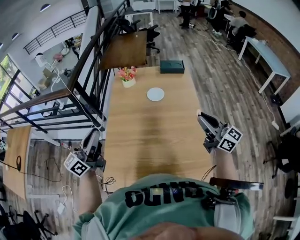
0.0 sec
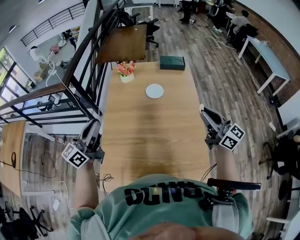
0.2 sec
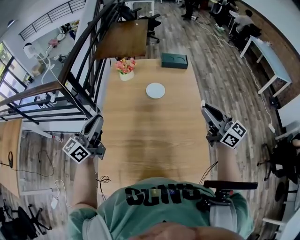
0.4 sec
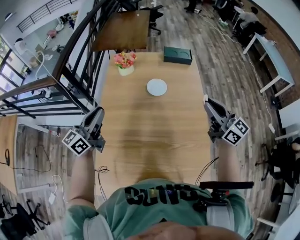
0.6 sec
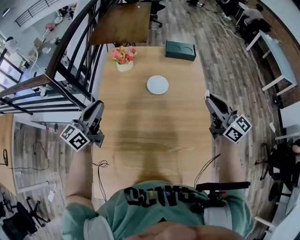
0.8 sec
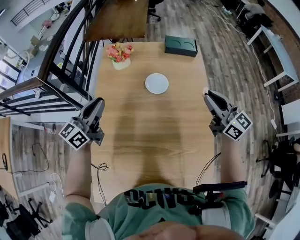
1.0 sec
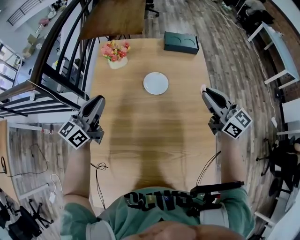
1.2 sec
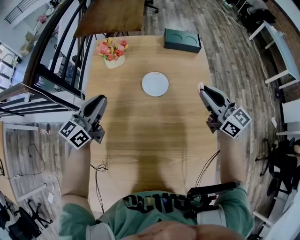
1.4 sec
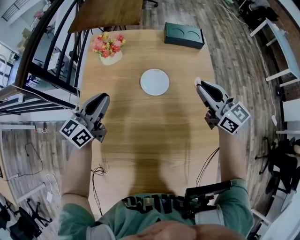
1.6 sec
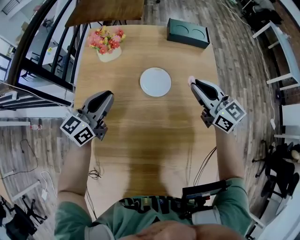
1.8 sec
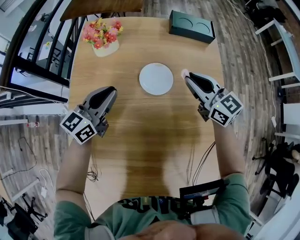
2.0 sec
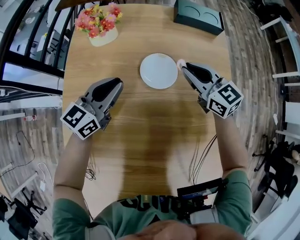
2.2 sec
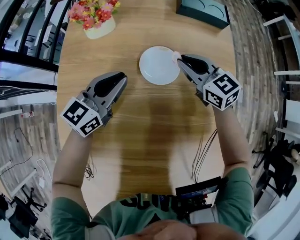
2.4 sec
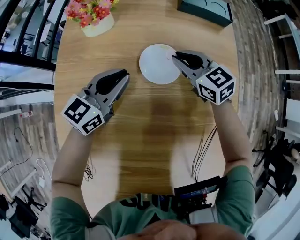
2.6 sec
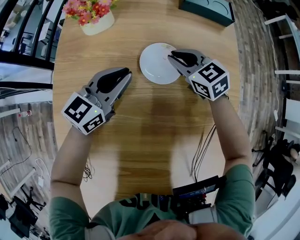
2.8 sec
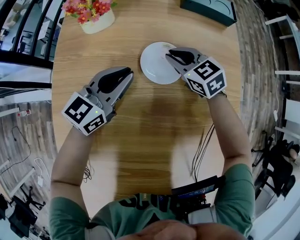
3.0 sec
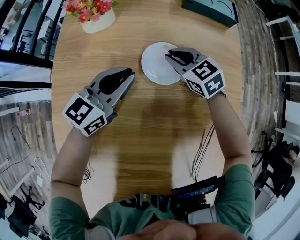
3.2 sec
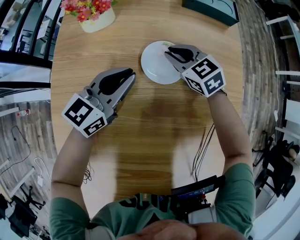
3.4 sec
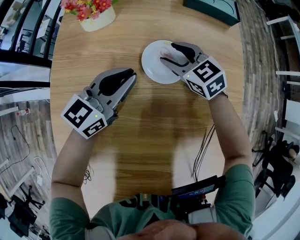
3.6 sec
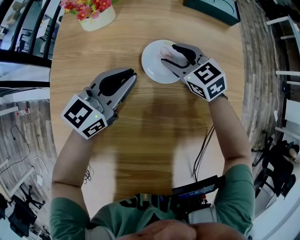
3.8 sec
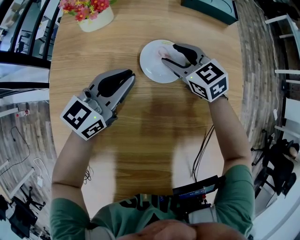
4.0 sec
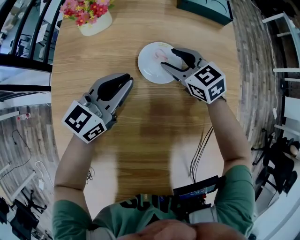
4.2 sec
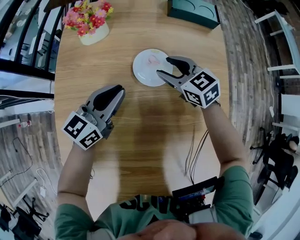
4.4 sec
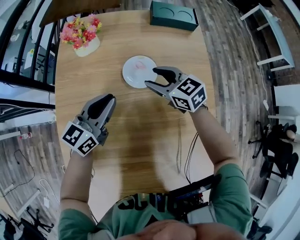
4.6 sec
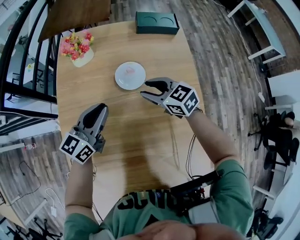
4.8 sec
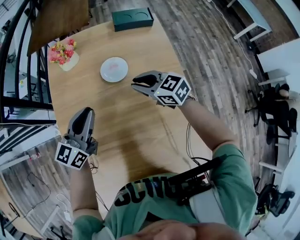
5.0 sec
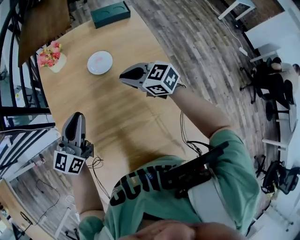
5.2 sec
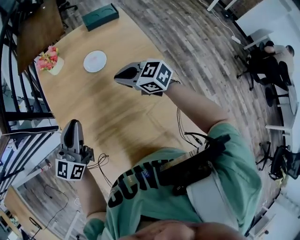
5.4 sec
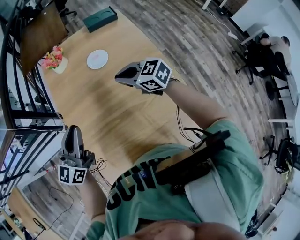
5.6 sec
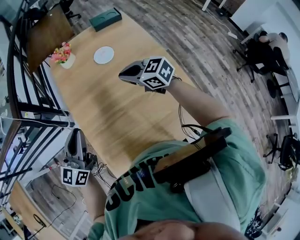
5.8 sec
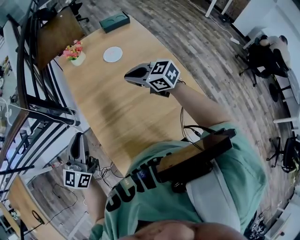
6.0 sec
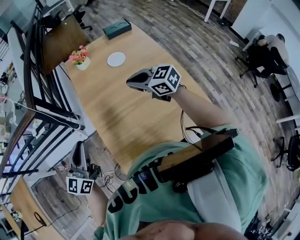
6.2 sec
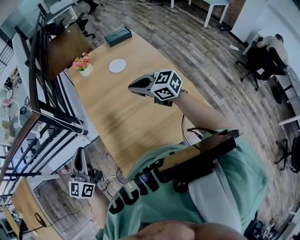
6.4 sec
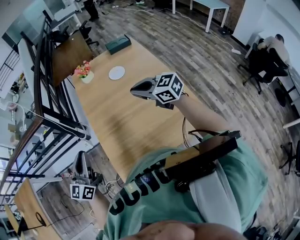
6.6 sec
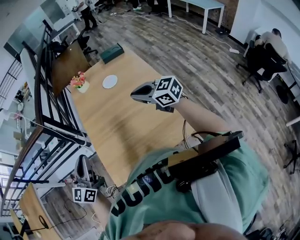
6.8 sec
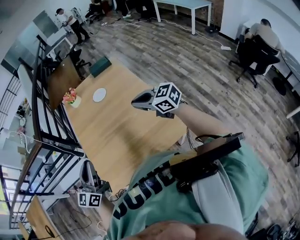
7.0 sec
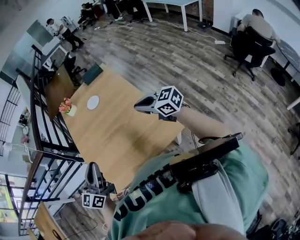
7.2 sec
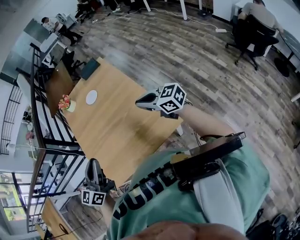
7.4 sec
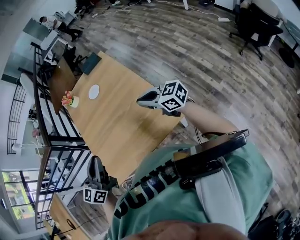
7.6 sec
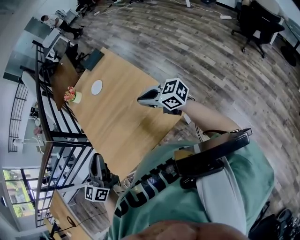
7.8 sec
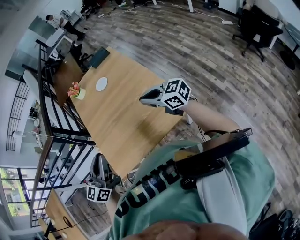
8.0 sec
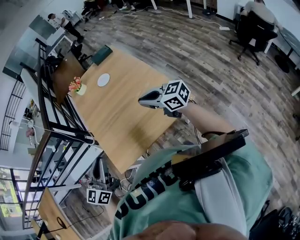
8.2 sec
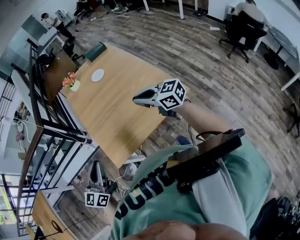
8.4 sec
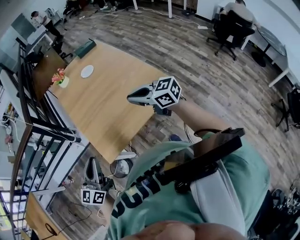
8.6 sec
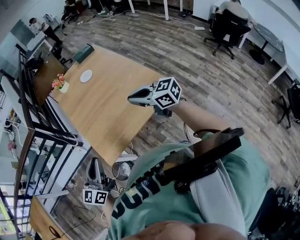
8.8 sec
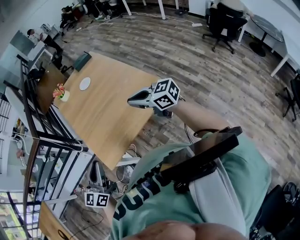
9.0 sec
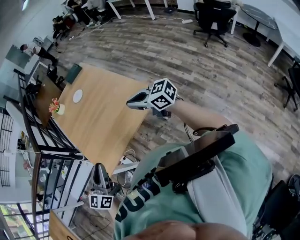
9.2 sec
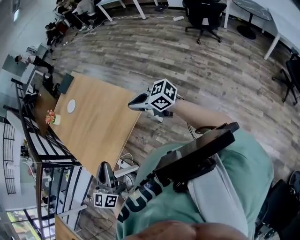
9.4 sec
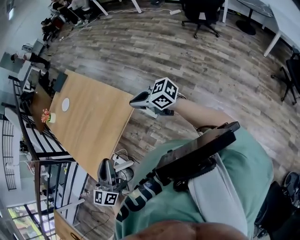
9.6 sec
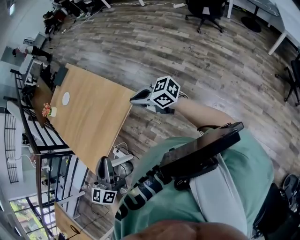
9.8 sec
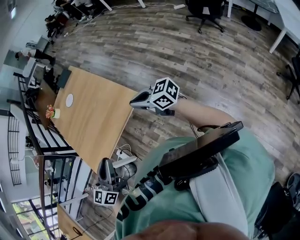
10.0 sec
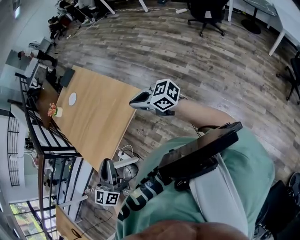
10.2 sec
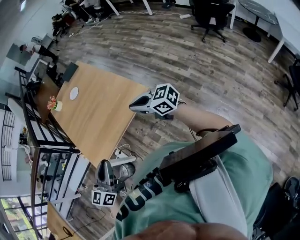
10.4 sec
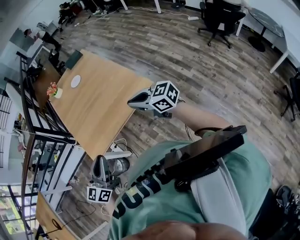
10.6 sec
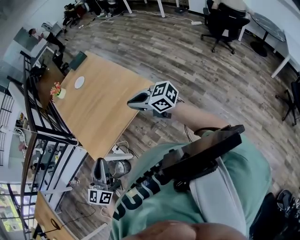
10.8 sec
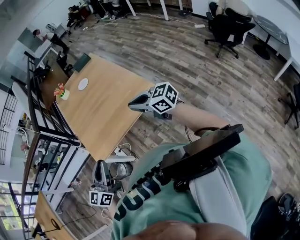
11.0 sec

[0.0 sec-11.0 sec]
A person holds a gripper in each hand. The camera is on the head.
0.0 sec to 1.6 sec: The grippers both shift forward and downward by some 40 cm.
1.6 sec to 3.2 sec: The right gripper shifts about 30 cm downward, forward and to the left, and tips its fingers downward by some 30 degrees. The left gripper heads downward, to the right and forward, covering about 20 cm.
3.2 sec to 4.8 sec: The left gripper is displaced upward and backward by some 15 cm. Meanwhile the right gripper moves backward and upward, some 20 cm, and opens its fingers.
4.8 sec to 6.2 sec: The right gripper shifts roughly 40 cm backward, upward and to the left, and closes its fingers, while the left gripper moves backward, to the left and upward, approximately 50 cm.
6.2 sec to 7.8 sec: Both grippers move to the right and backward, roughly 40 cm.
7.8 sec to 9.4 sec: Both grippers move backward, roughly 25 cm. The right gripper moves some 25 cm to the left and comes back, while the left gripper moves approximately 25 cm to the left and comes back.
9.4 sec to 11.0 sec: The left gripper is displaced to the left and backward by approximately 15 cm; the right gripper shifts roughly 15 cm to the left.

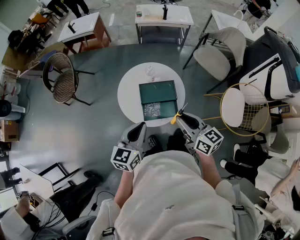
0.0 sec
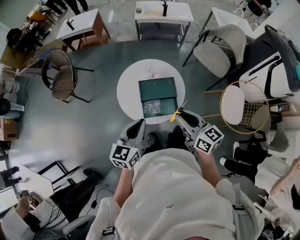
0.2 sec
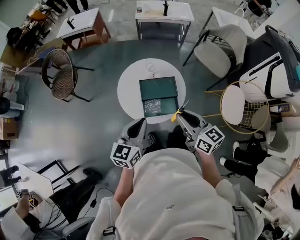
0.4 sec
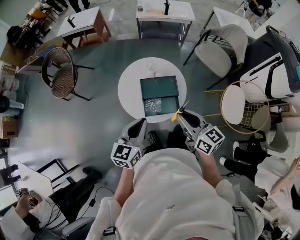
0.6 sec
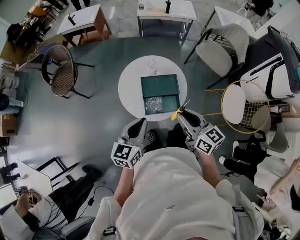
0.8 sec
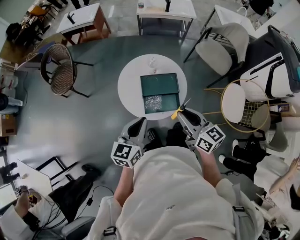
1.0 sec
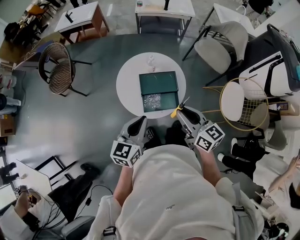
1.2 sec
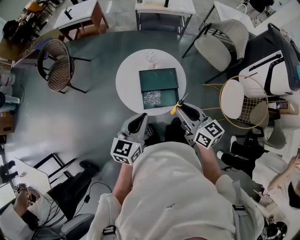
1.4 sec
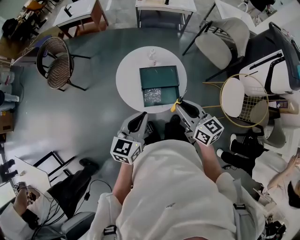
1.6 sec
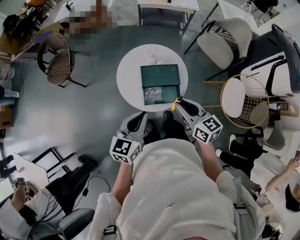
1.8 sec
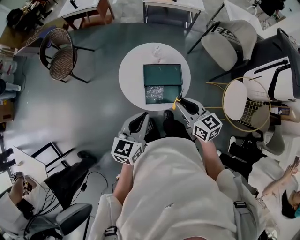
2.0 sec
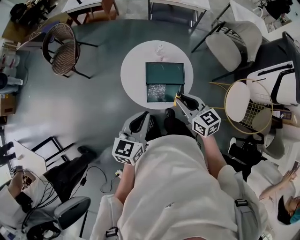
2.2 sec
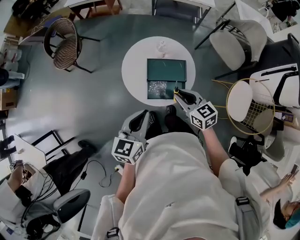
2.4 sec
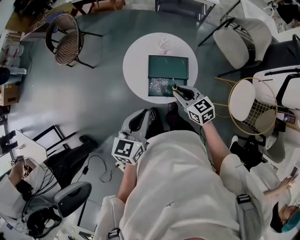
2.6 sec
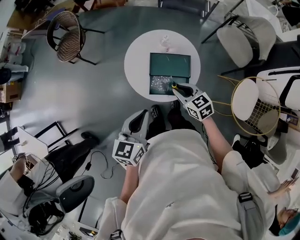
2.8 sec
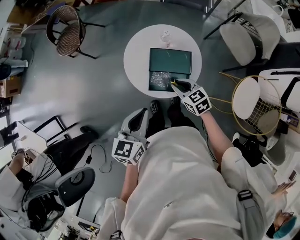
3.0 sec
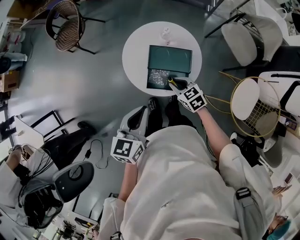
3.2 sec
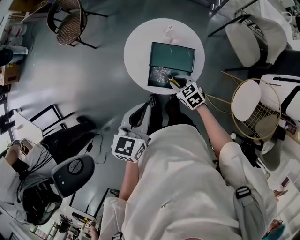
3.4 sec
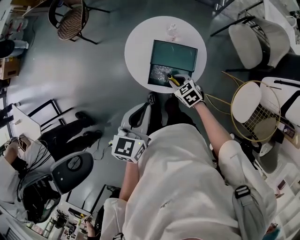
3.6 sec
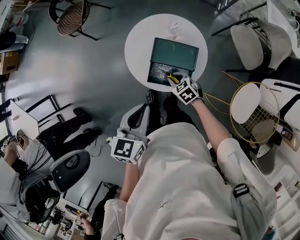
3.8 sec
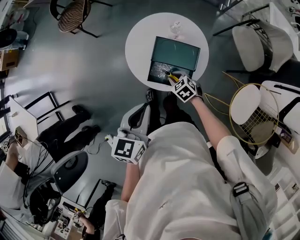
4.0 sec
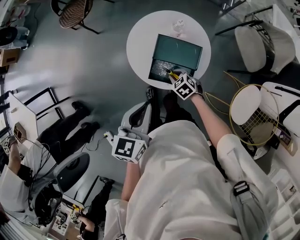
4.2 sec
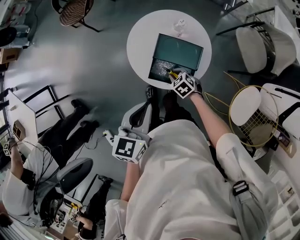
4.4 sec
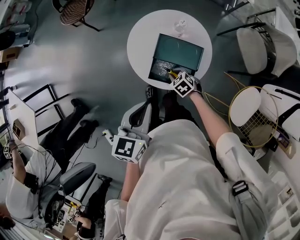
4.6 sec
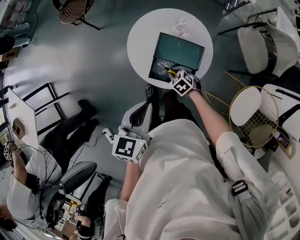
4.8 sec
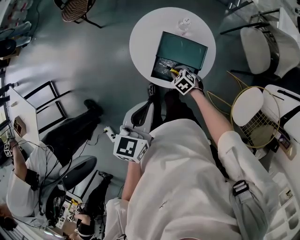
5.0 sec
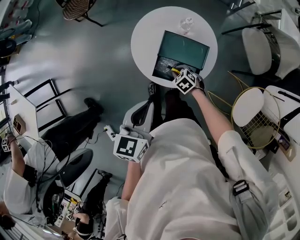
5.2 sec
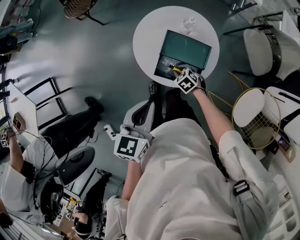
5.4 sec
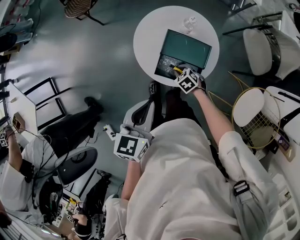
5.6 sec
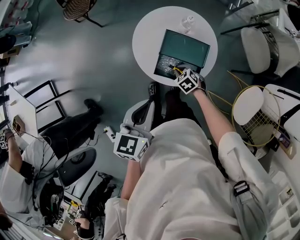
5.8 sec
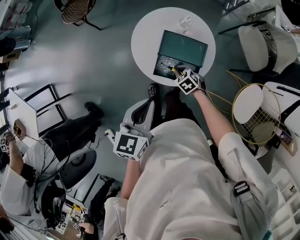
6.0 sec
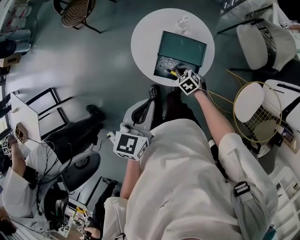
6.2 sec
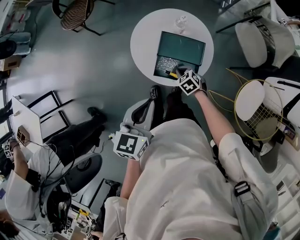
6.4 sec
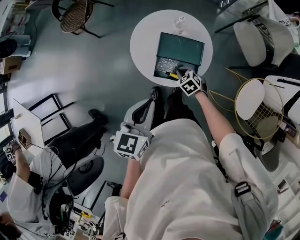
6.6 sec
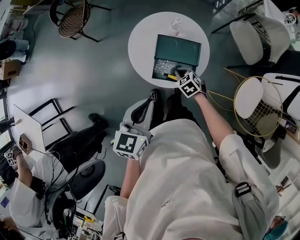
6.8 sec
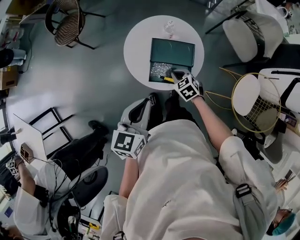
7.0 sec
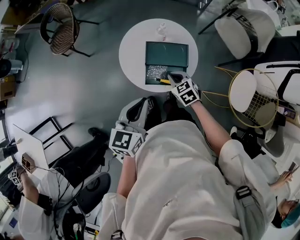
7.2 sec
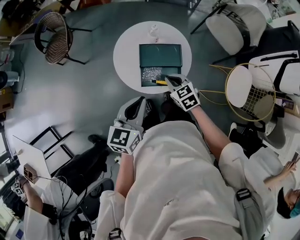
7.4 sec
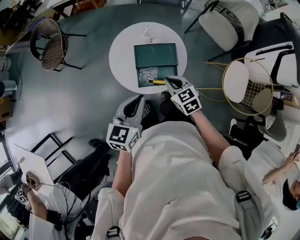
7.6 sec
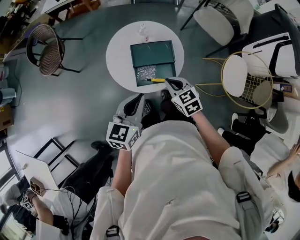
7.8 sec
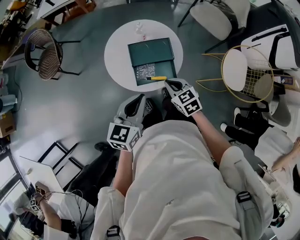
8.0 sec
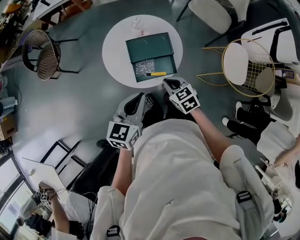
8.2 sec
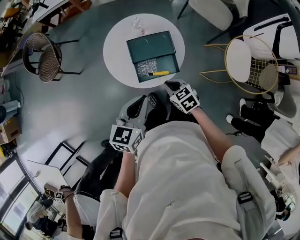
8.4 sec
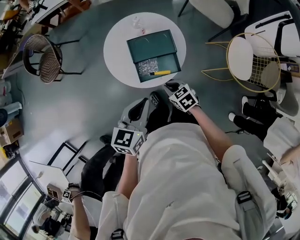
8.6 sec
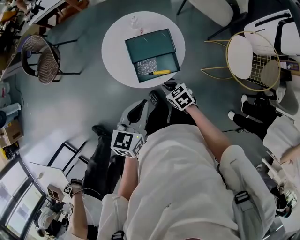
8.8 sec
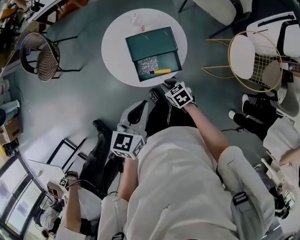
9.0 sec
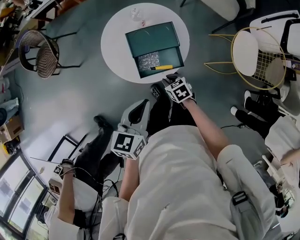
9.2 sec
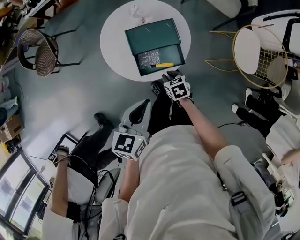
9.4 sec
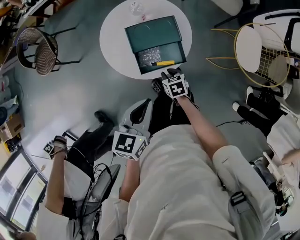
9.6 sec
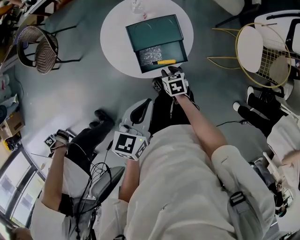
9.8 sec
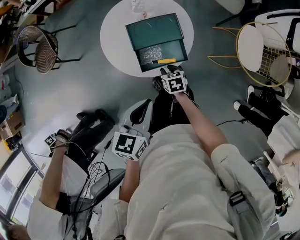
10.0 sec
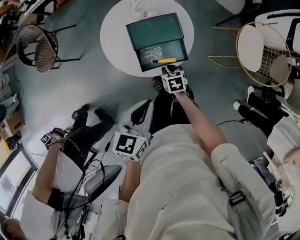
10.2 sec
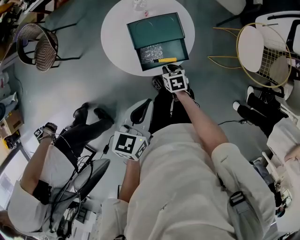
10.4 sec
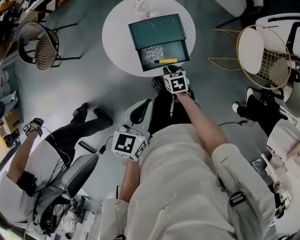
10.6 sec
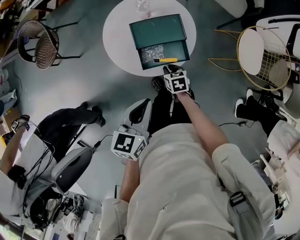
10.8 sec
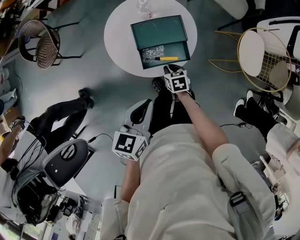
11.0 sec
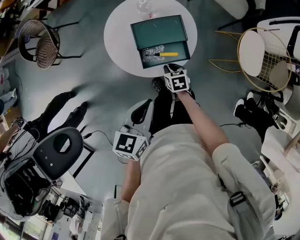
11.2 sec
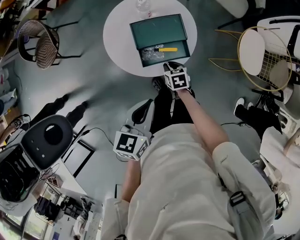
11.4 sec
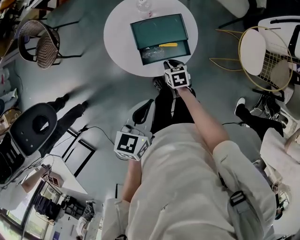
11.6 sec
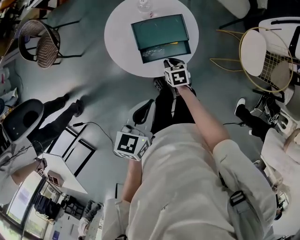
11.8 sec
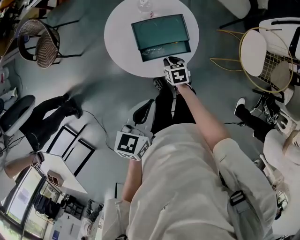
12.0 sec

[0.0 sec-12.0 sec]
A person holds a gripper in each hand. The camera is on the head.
0.0 sec to 1.6 sec: The grippers stay close to where they were, moving slightly.
1.6 sec to 3.0 sec: The right gripper is displaced downward and forward by some 20 cm, and turns by roughly 30 degrees.
3.0 sec to 4.4 sec: The right gripper heads downward, covering approximately 15 cm, and swivels approximately 30 degrees.
4.4 sec to 6.0 sec: The grippers make only small movements.
6.0 sec to 7.6 sec: The left gripper swivels about 20 degrees; the right gripper heads upward, covering approximately 20 cm, and rotates about 40 degrees.
7.6 sec to 9.0 sec: The right gripper heads downward and backward, covering approximately 15 cm, and rotates about 20 degrees.
9.0 sec to 10.4 sec: The right gripper travels downward by some 5 cm, and changes its angle by approximately 20 degrees.
10.4 sec to 12.0 sec: The right gripper moves forward, some 5 cm.

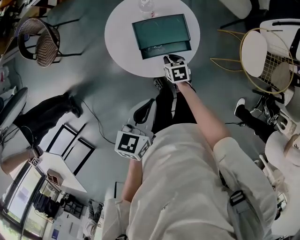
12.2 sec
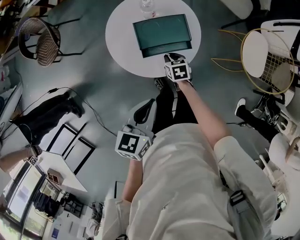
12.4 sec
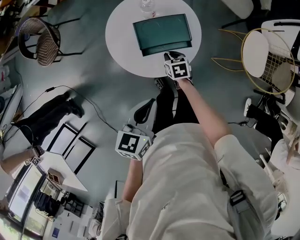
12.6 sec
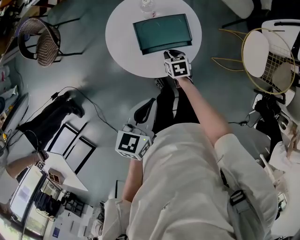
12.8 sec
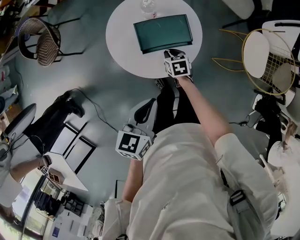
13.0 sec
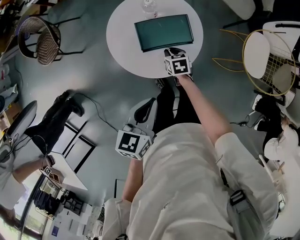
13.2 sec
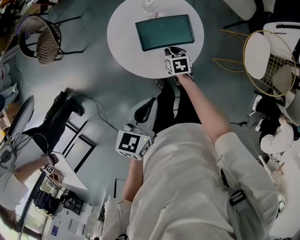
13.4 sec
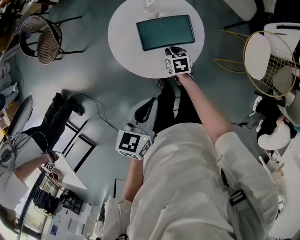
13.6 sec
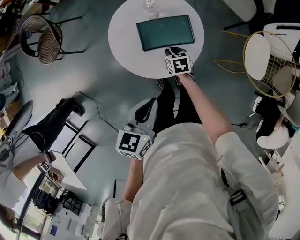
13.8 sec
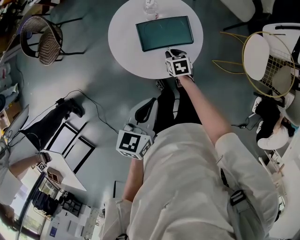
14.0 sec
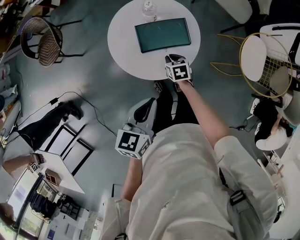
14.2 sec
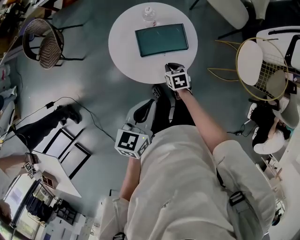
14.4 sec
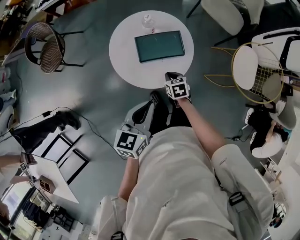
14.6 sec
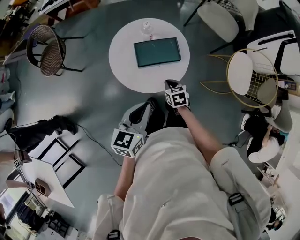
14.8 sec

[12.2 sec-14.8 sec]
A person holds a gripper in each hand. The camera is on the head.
12.2 sec to 13.4 sec: The grippers move only a little.
13.4 sec to 14.8 sec: The right gripper travels backward and upward by some 10 cm.
